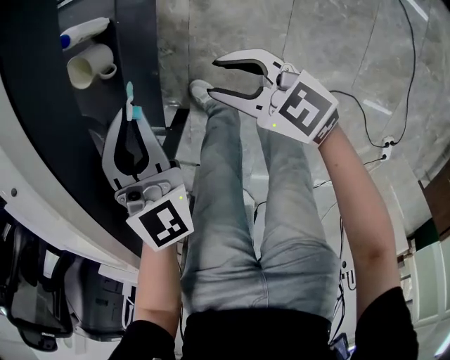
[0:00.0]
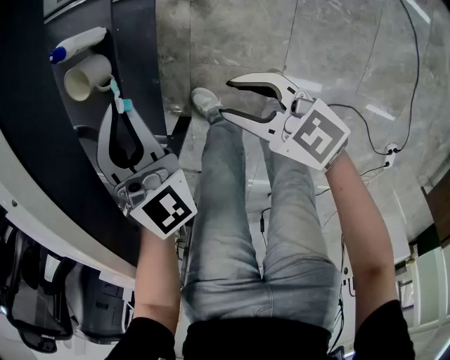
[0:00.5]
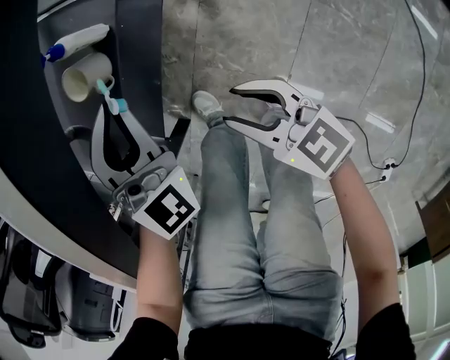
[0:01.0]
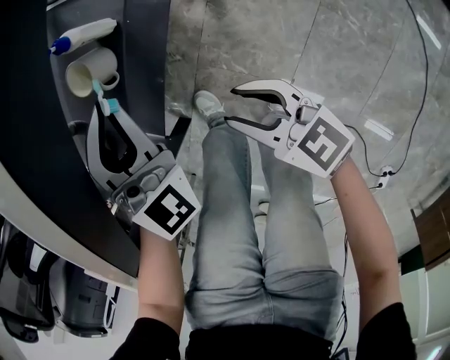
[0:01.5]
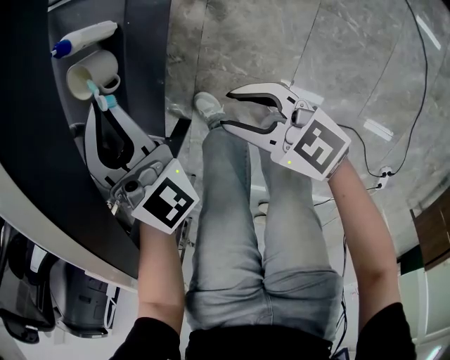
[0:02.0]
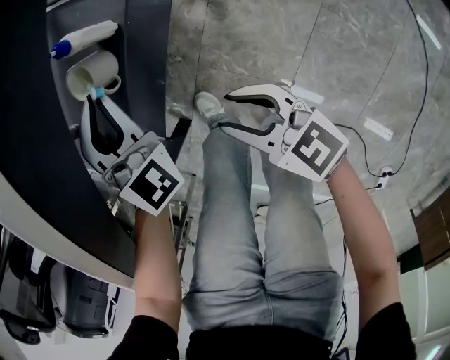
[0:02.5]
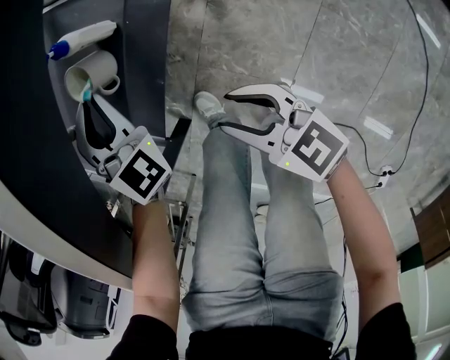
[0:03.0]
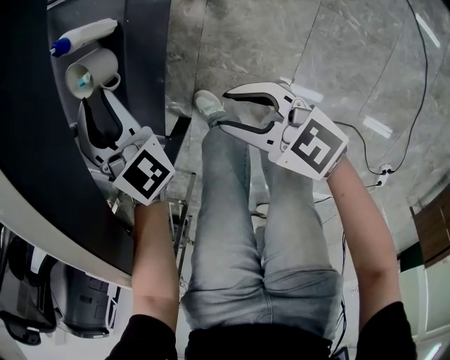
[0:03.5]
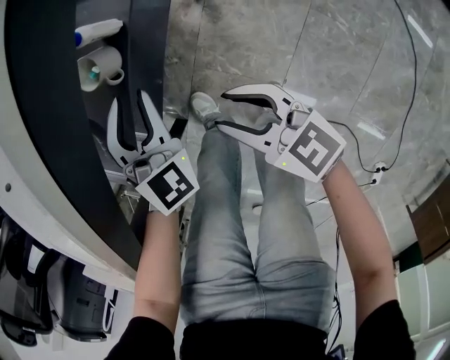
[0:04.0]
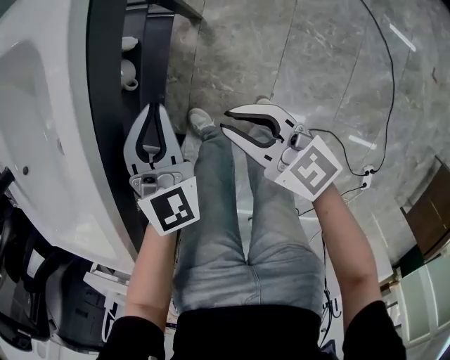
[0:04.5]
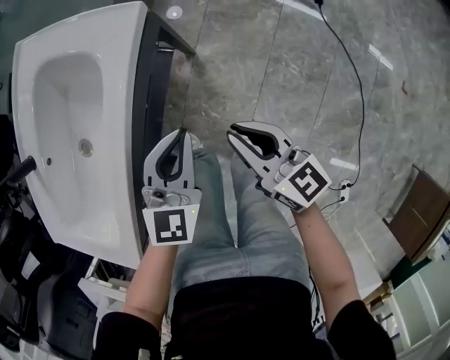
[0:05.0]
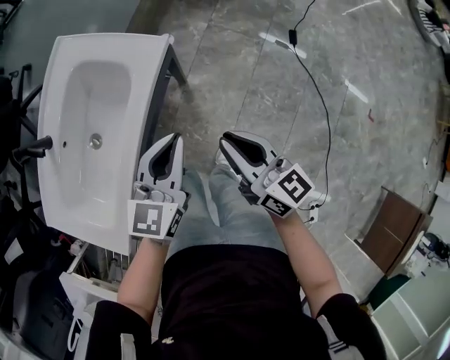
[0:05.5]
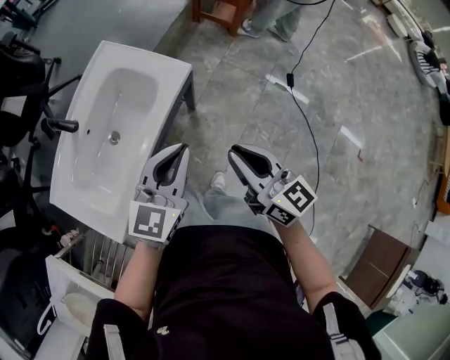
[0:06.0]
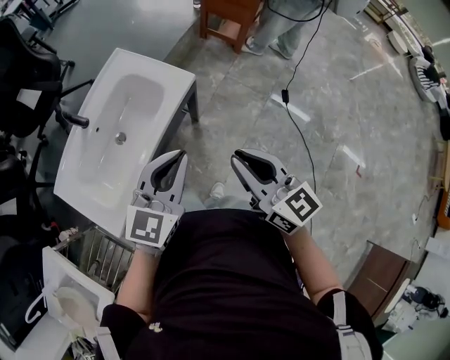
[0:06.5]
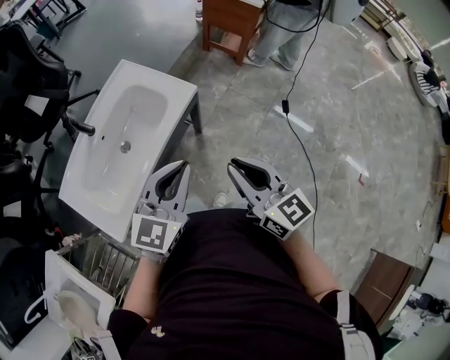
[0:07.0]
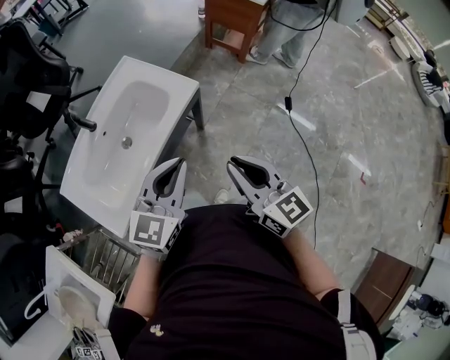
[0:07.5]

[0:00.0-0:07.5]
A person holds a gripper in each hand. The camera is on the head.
0:00.0 to 0:02.0: The left gripper moves forward, about 5 cm, and rotates some 30 degrees.
0:02.0 to 0:04.0: The left gripper goes forward and returns, some 5 cm each way, and opens its fingers.
0:04.0 to 0:05.5: The grippers both shift upward by about 35 cm. The left gripper changes its angle by approximately 50 degrees, and closes its fingers; the right gripper swivels some 30 degrees, and closes its fingers.
0:05.5 to 0:07.5: The left gripper heads upward and backward, covering some 20 cm. The right gripper travels upward by about 15 cm.

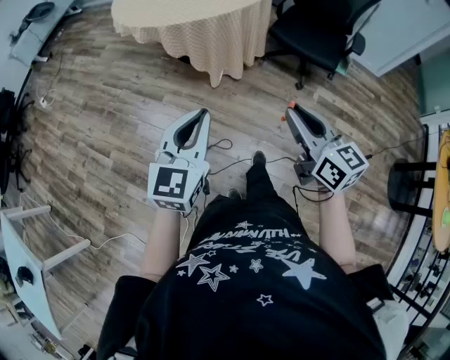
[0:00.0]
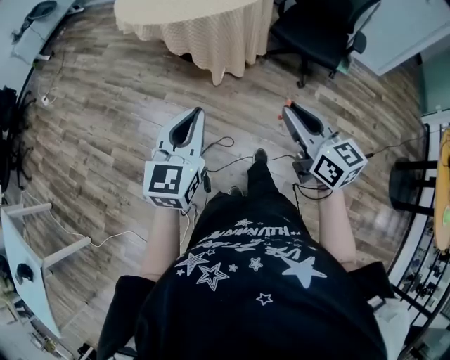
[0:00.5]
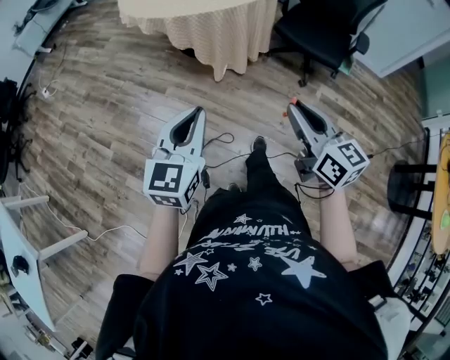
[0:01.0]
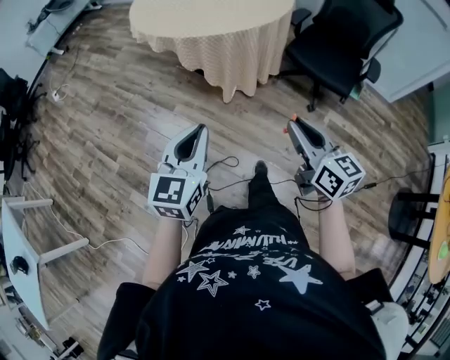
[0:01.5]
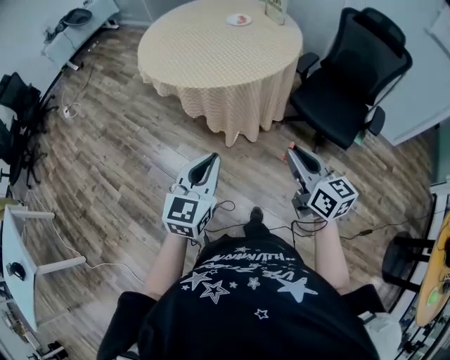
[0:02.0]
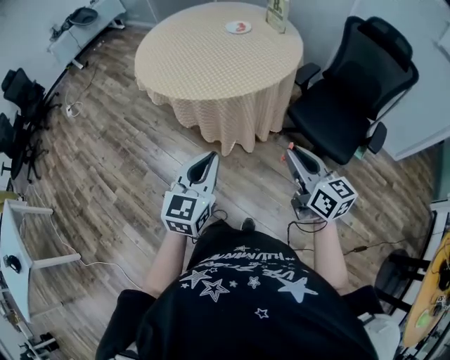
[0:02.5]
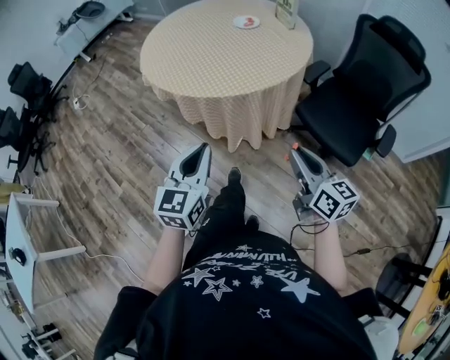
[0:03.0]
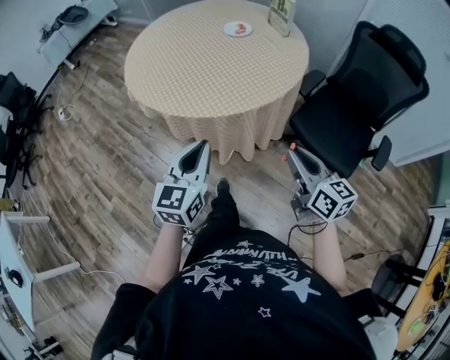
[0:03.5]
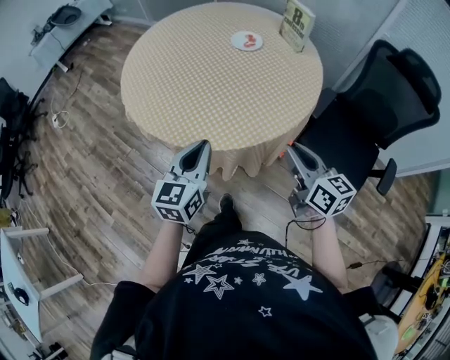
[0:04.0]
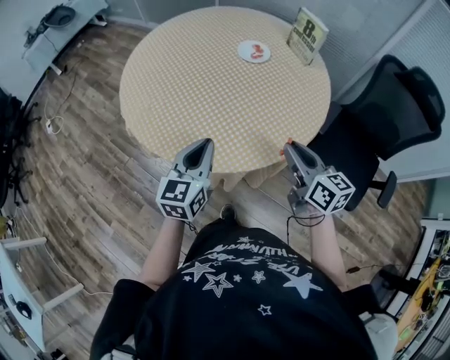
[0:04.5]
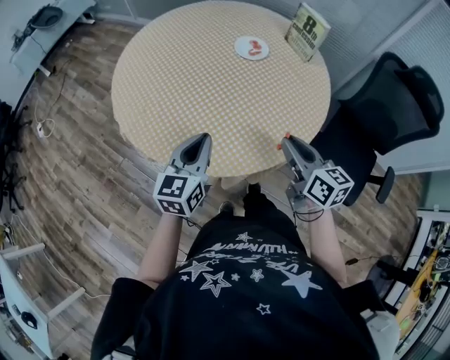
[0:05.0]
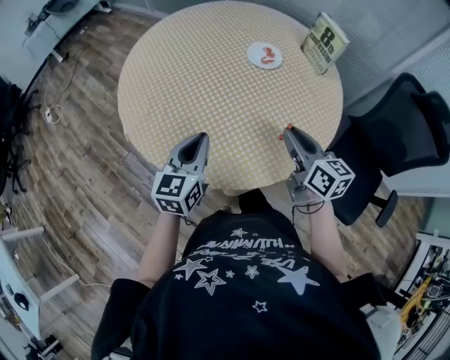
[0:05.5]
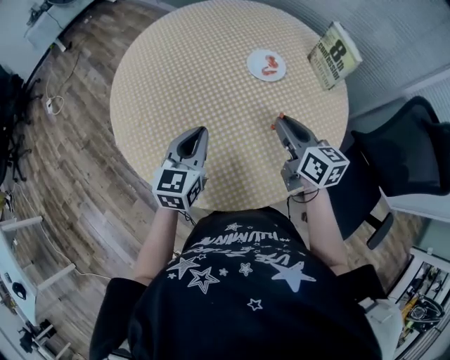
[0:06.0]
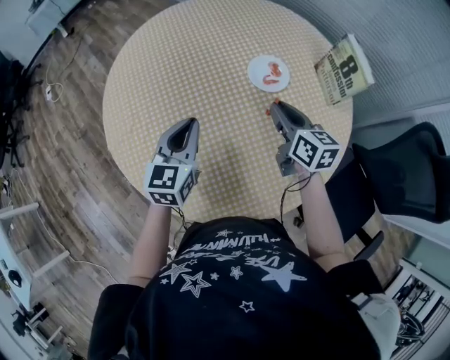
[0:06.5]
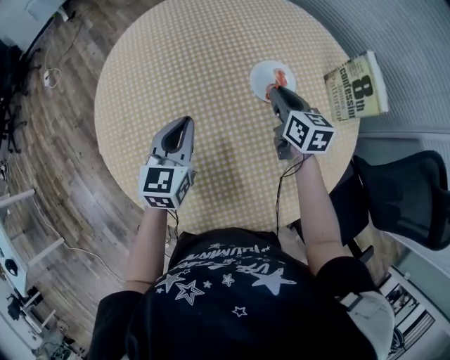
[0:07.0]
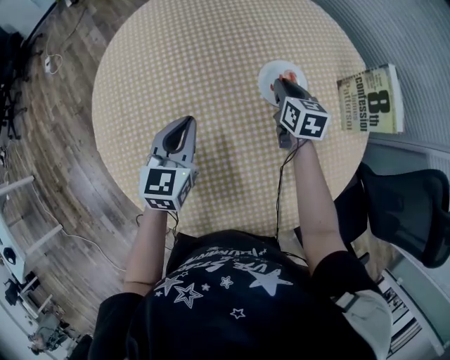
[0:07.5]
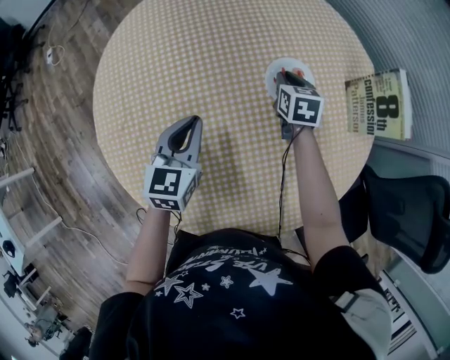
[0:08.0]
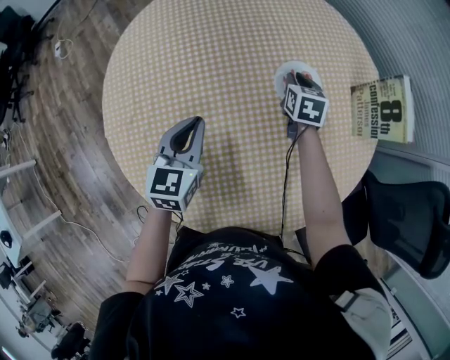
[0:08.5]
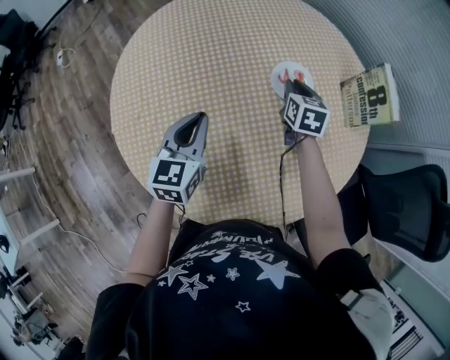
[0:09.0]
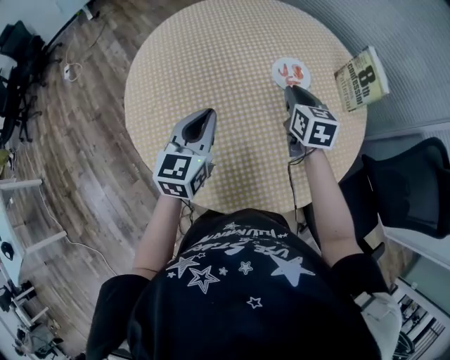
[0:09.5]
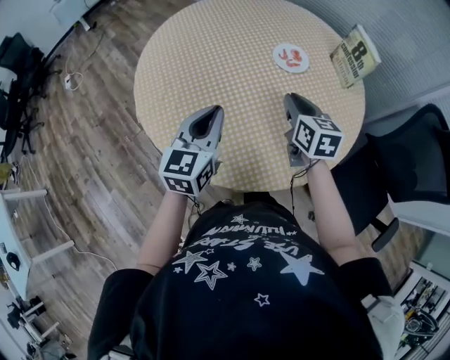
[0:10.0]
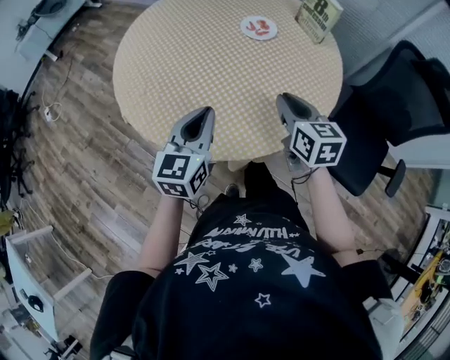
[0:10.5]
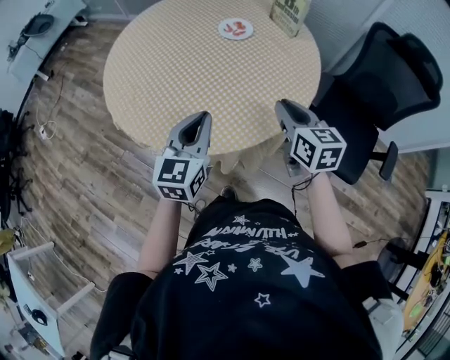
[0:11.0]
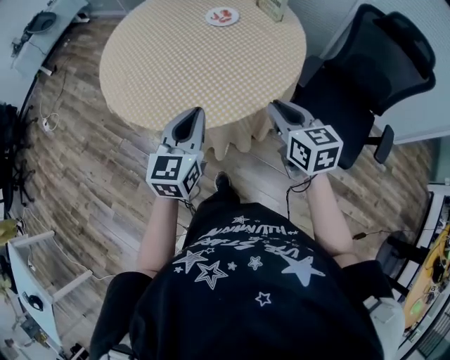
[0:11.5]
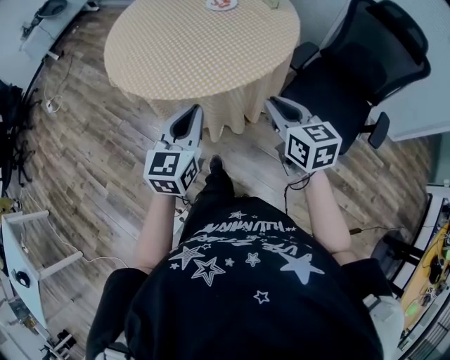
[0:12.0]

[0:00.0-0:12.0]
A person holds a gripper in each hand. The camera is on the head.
0:00.0 to 0:02.0: The two grippers go about 20 cm forward.
0:02.0 to 0:04.0: The grippers both shift forward by roughly 35 cm.
0:04.0 to 0:06.0: The grippers both shift forward by approximately 30 cm.
0:06.0 to 0:08.0: The right gripper moves forward and downward, about 35 cm, and swivels some 30 degrees. Meanwhile the left gripper goes some 15 cm forward and downward.
0:08.0 to 0:10.0: The left gripper heads backward and upward, covering some 20 cm, while the right gripper shifts approximately 30 cm backward and upward.
0:10.0 to 0:12.0: The grippers both shift backward by roughly 35 cm.

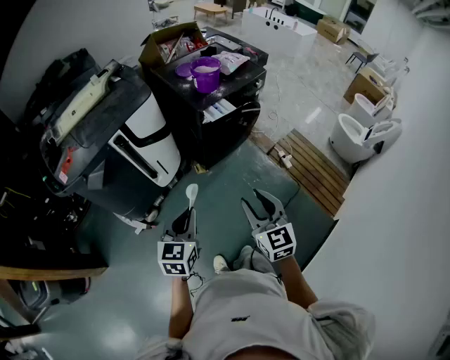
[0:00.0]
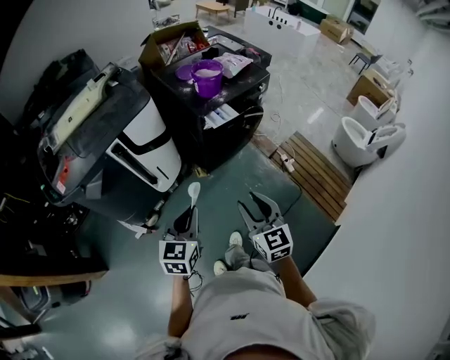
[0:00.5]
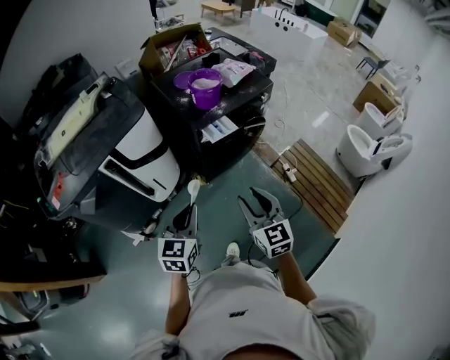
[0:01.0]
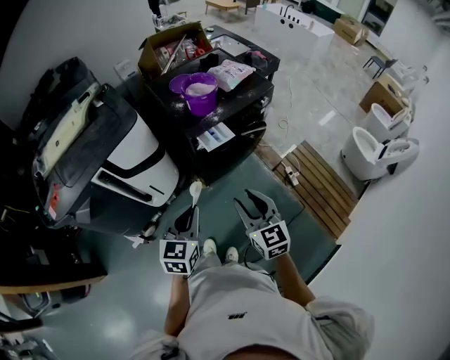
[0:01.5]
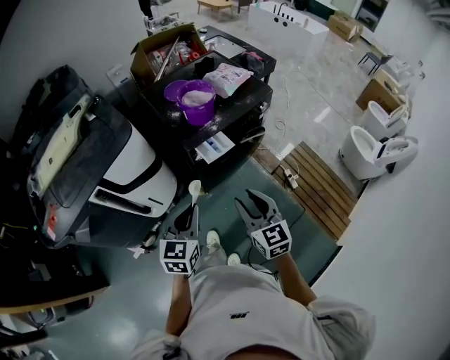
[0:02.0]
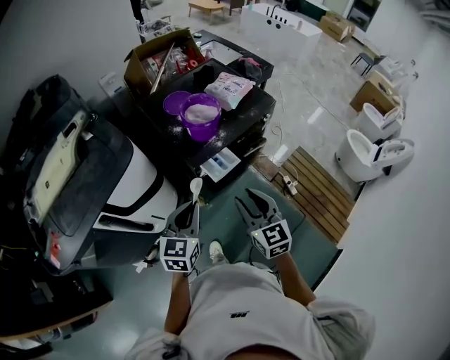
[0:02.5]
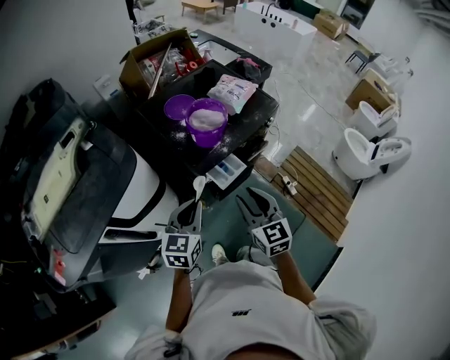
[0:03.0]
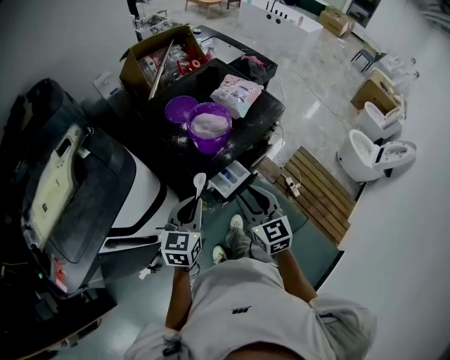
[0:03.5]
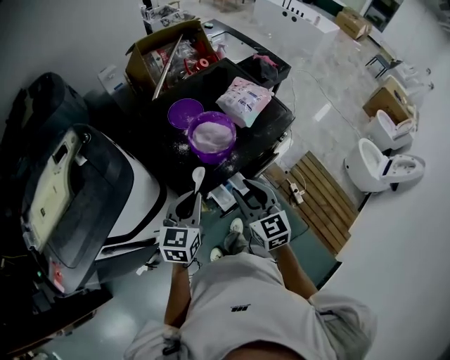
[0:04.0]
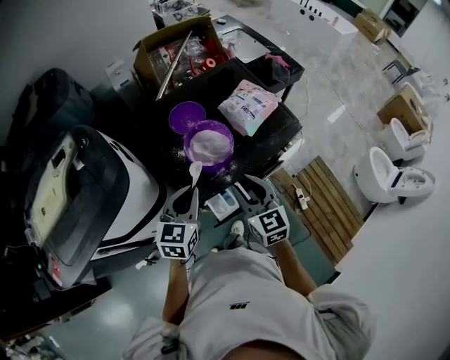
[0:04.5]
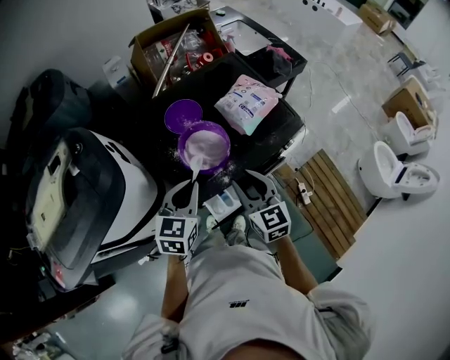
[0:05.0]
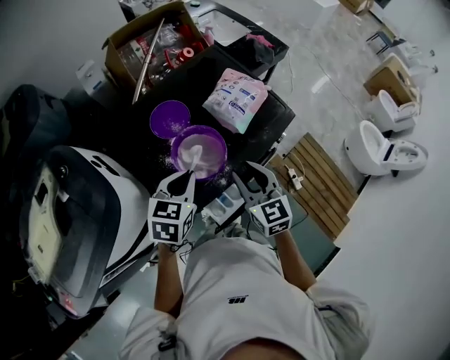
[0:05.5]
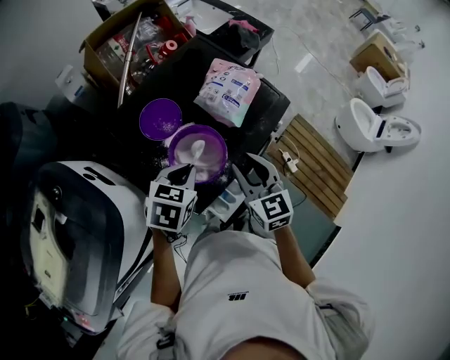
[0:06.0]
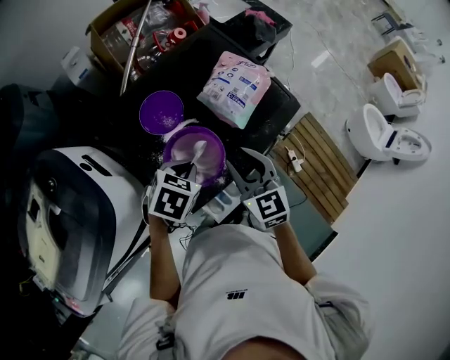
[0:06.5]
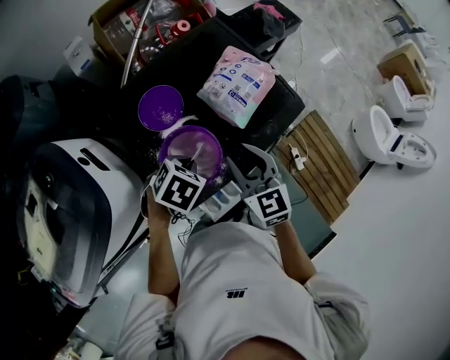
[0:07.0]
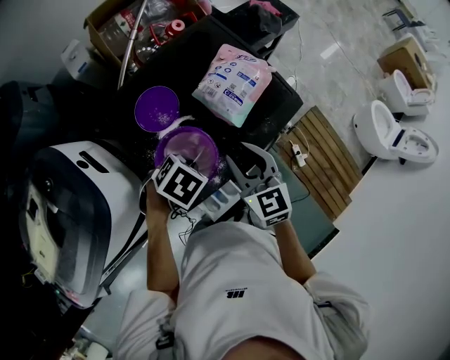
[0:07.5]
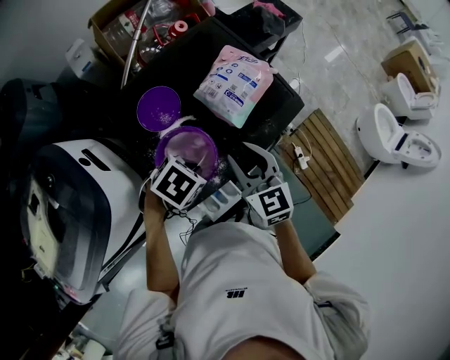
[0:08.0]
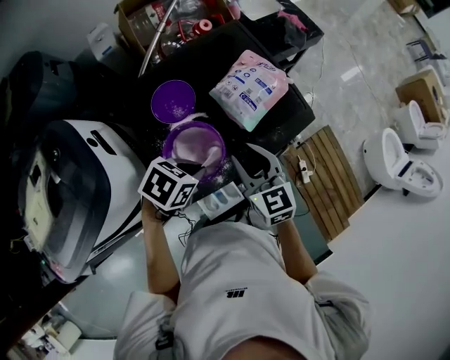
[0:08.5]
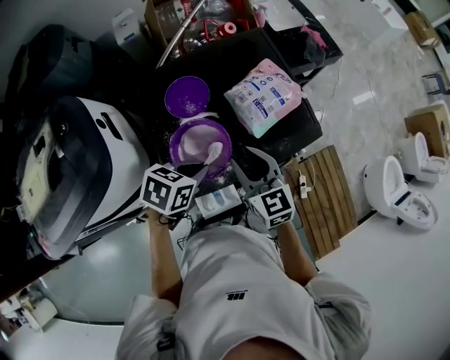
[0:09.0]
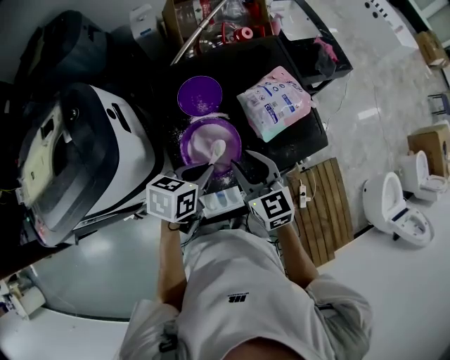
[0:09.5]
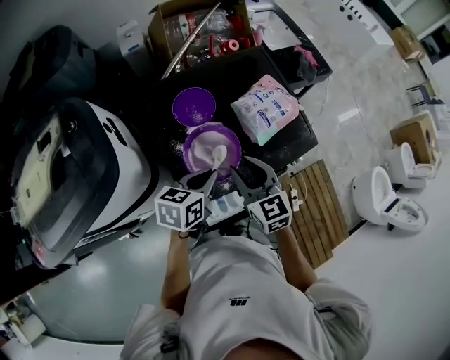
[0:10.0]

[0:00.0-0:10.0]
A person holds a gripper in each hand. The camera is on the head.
0:00.0 to 0:02.0: The two grippers go about 30 cm forward.
0:02.0 to 0:04.0: Both grippers move forward, about 30 cm.
0:04.0 to 0:06.0: Both grippers travel together forward, roughly 20 cm. The left gripper changes its angle by roughly 30 degrees.
0:06.0 to 0:08.0: The right gripper ends up roughly 5 cm from where it was; the left gripper shifts by roughly 10 cm, and turns by some 30 degrees.
0:08.0 to 0:10.0: The left gripper shifts by about 5 cm, and tilts its fingers roughly 40 degrees upward. Meanwhile the right gripper shifts by some 10 cm.
